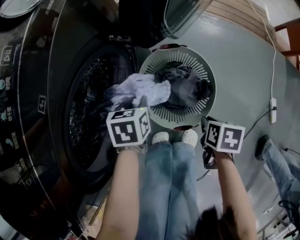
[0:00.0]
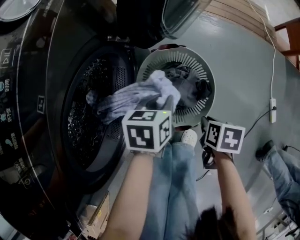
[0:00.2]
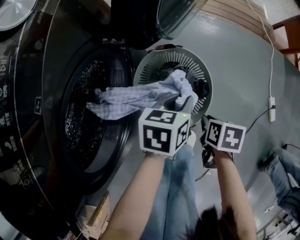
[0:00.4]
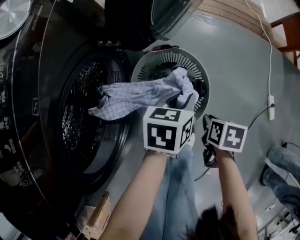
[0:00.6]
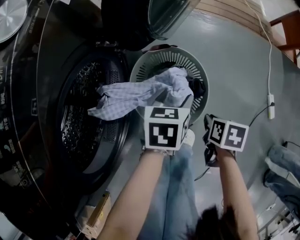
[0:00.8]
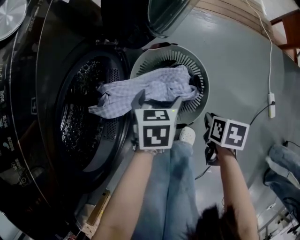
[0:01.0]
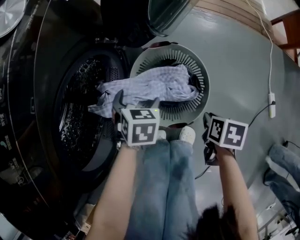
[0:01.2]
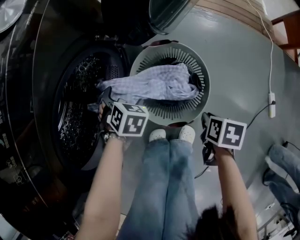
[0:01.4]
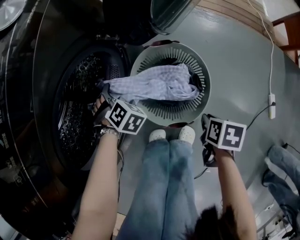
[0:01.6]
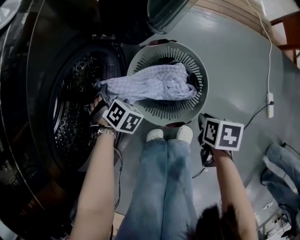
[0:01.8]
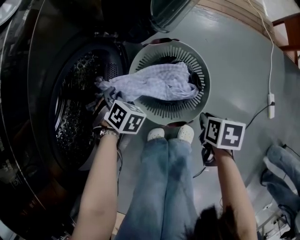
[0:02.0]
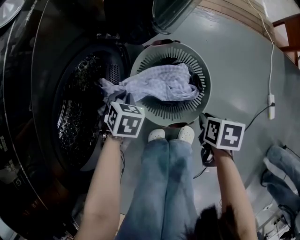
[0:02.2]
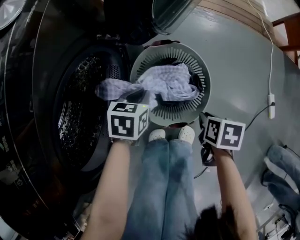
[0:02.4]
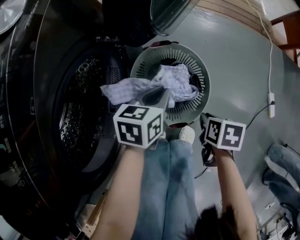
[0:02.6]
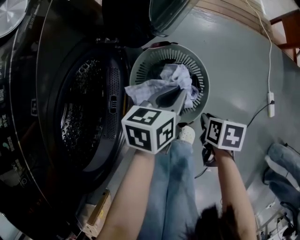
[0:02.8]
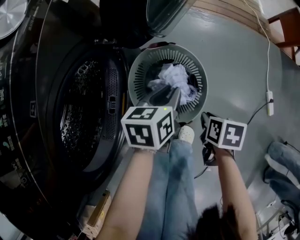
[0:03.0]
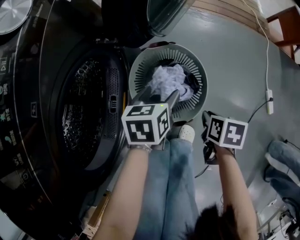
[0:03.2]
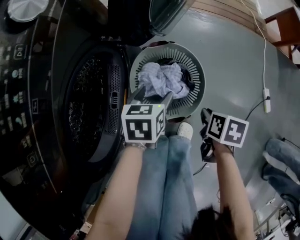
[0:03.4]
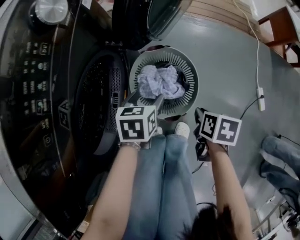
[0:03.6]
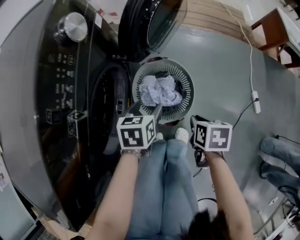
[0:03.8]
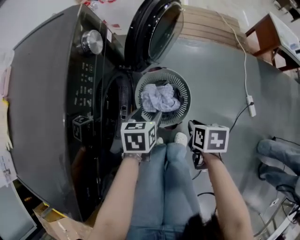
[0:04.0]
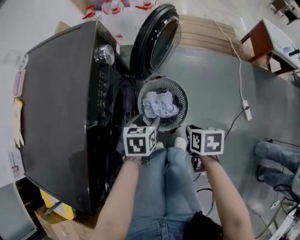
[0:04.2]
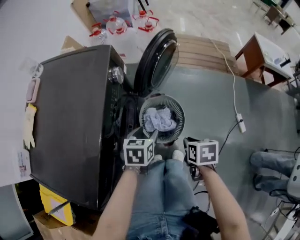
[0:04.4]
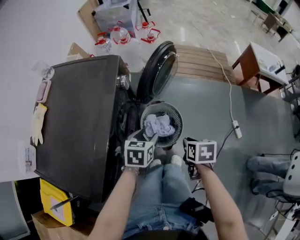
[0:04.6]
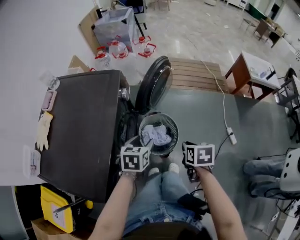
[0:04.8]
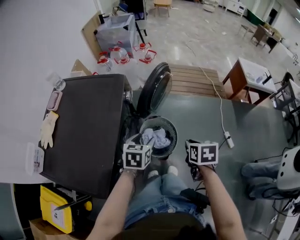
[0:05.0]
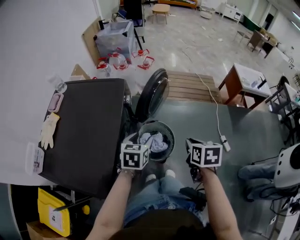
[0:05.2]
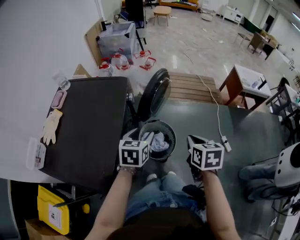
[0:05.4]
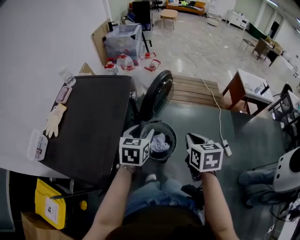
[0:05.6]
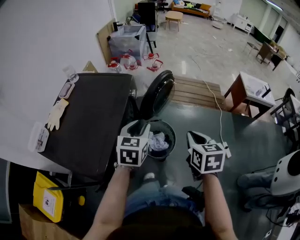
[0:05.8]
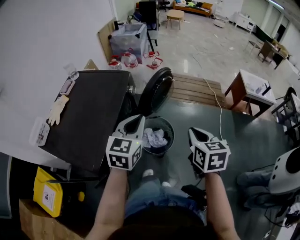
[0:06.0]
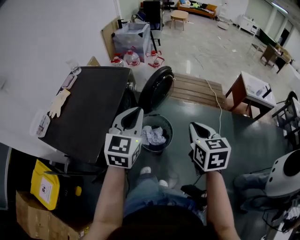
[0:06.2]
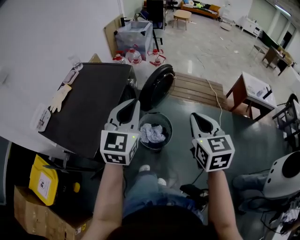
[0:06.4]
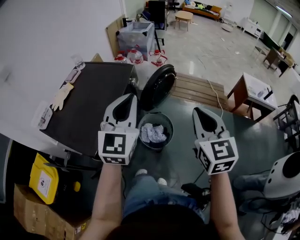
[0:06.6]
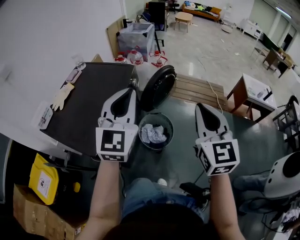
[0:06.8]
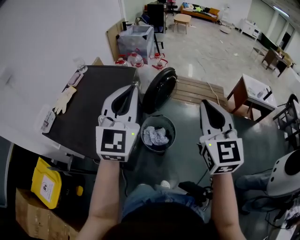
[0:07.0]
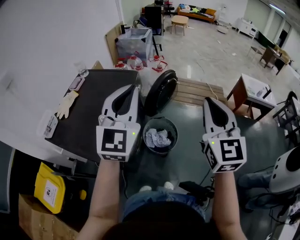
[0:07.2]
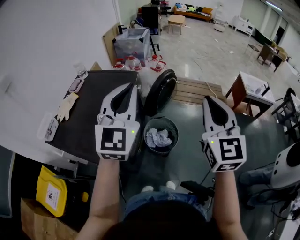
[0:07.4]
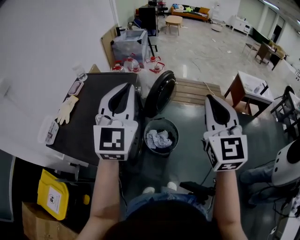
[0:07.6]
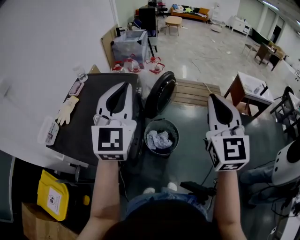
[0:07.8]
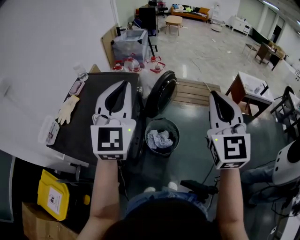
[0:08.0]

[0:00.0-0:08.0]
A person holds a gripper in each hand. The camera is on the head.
0:00.0 to 0:01.6: The left gripper rolls clockwise, seen from behind, by approximately 50 degrees, and opens up.
0:01.6 to 0:03.2: The left gripper shifts by approximately 20 cm, turns by some 60 degrees, and closes and opens again.
0:03.2 to 0:04.8: Both grippers move upward, approximately 35 cm.
0:04.8 to 0:06.4: Both grippers travel together upward, approximately 30 cm. The left gripper points its fingers some 40 degrees further upward, and closes its fingers; the right gripper angles its fingers upward, by roughly 40 degrees.
0:06.4 to 0:08.0: The left gripper shifts some 15 cm upward and to the left. The right gripper heads upward, covering about 15 cm, and rotates some 30 degrees.

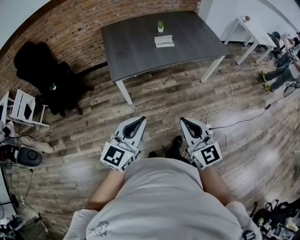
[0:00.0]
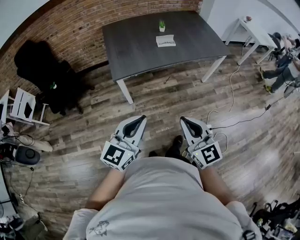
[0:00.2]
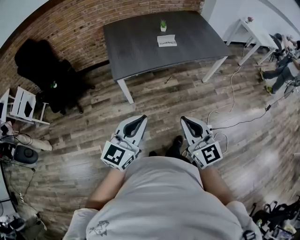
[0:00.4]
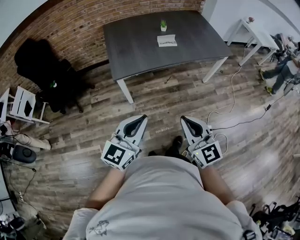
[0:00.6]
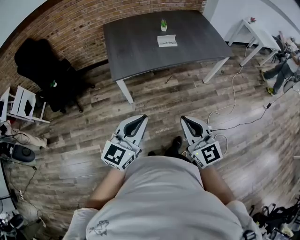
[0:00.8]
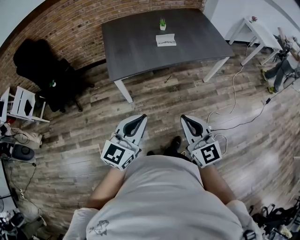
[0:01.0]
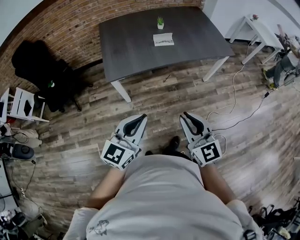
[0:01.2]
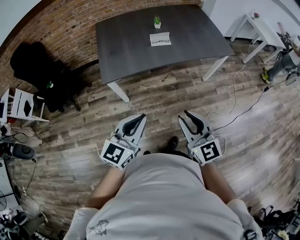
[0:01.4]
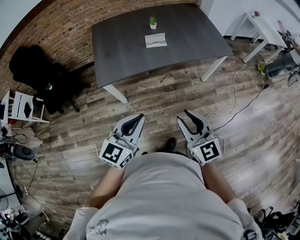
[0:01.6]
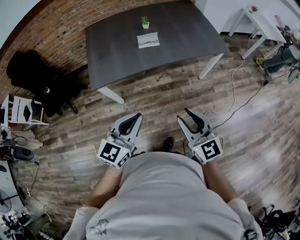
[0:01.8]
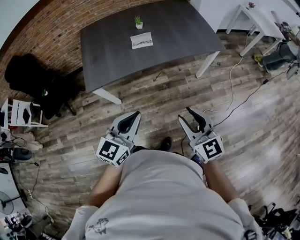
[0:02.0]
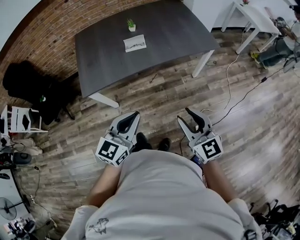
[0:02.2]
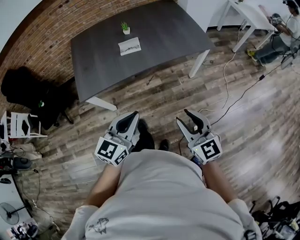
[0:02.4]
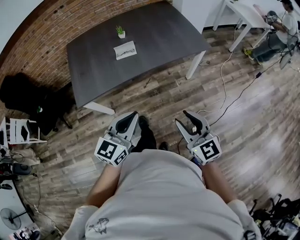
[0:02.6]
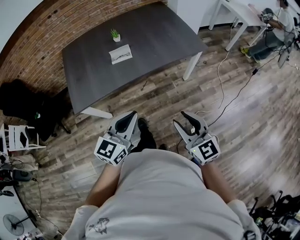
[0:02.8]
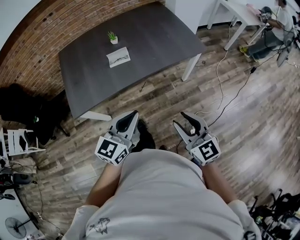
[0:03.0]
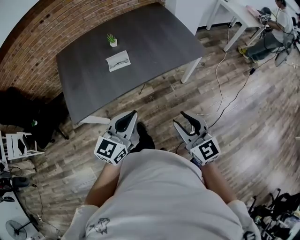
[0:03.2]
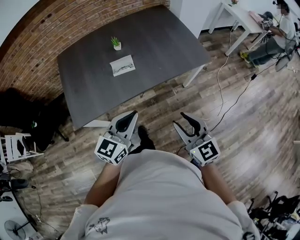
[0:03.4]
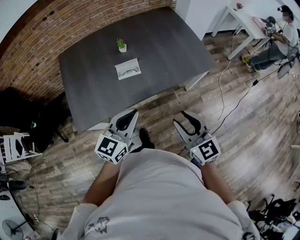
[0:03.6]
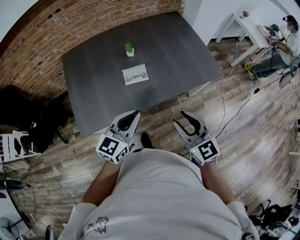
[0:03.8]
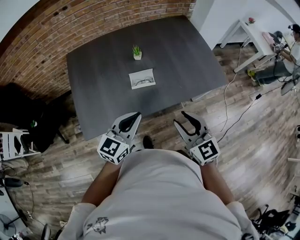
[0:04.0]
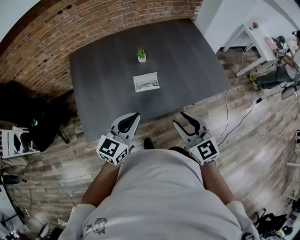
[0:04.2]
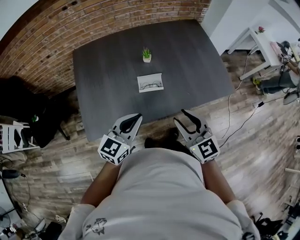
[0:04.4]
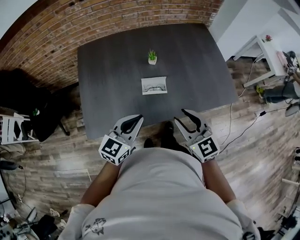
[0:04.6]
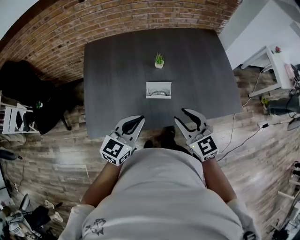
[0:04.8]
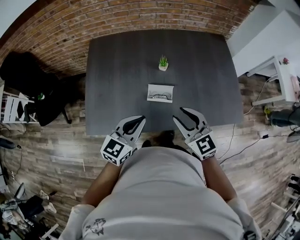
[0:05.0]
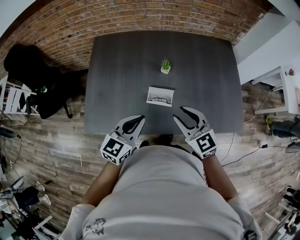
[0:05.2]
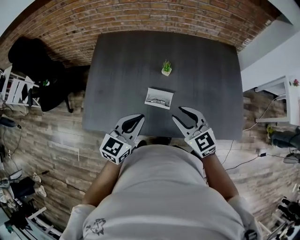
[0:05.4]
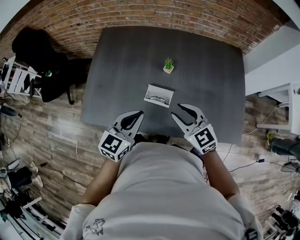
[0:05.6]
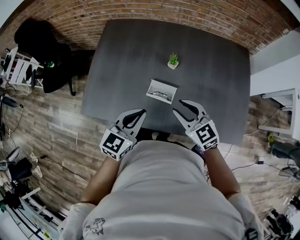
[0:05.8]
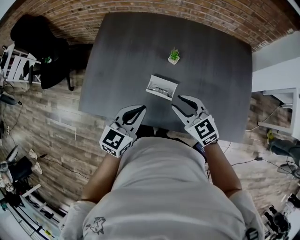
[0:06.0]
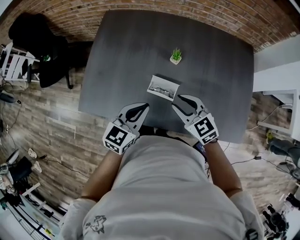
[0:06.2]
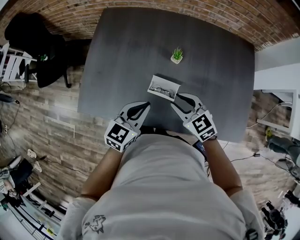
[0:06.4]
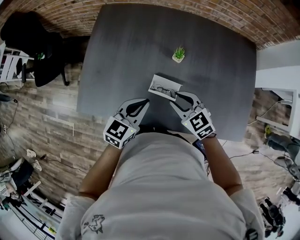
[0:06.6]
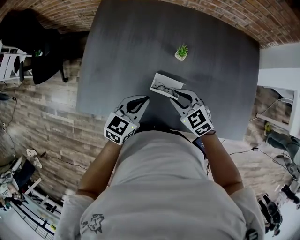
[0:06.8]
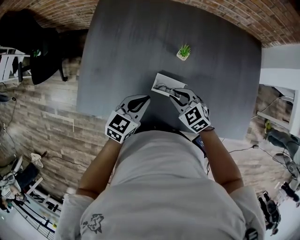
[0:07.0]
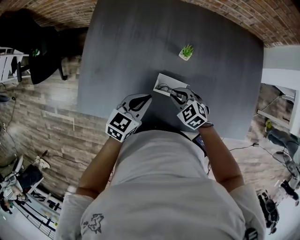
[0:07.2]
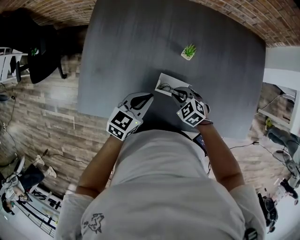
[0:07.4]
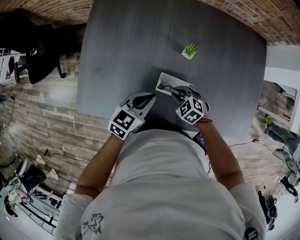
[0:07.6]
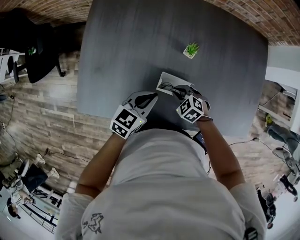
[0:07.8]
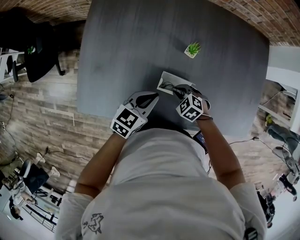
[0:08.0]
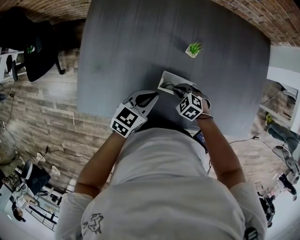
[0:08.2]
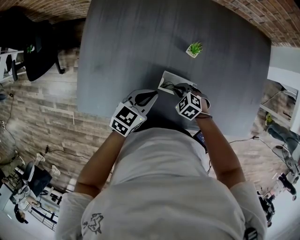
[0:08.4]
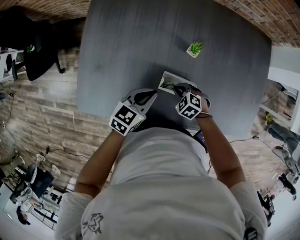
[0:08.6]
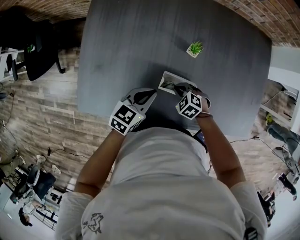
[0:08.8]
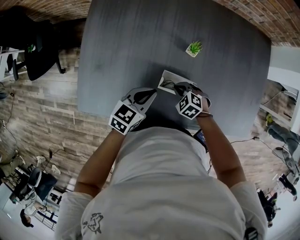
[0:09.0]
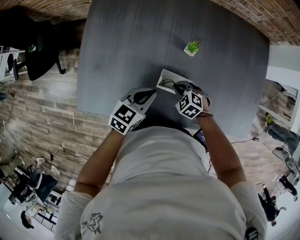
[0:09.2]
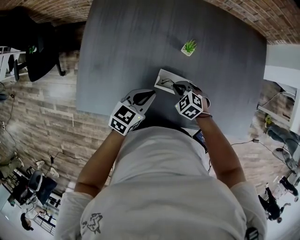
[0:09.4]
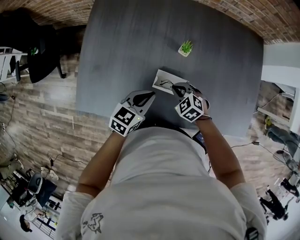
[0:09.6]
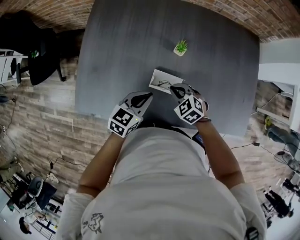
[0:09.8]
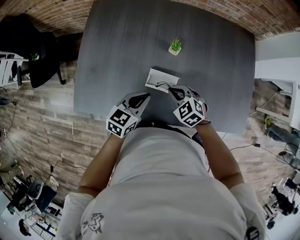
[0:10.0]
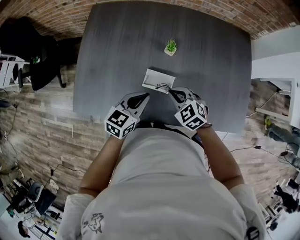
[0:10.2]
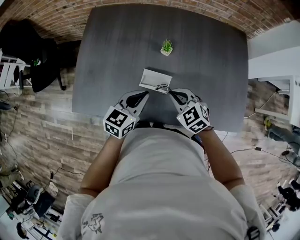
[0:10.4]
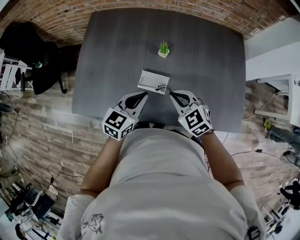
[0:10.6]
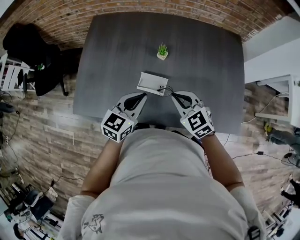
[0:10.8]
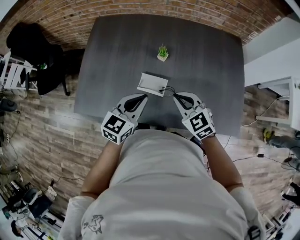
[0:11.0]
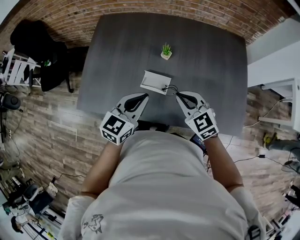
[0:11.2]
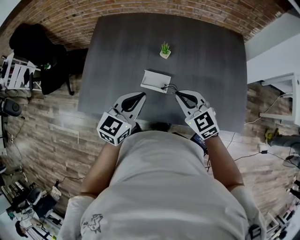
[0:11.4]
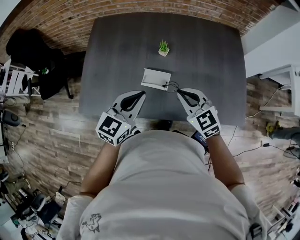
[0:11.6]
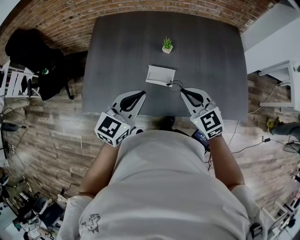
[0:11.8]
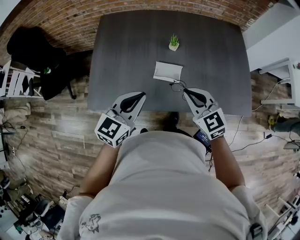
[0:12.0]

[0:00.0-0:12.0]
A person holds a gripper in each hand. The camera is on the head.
0:00.0 to 0:01.6: Both grippers travel together forward and to the right, about 20 cm. The right gripper opens.
0:01.6 to 0:03.0: The left gripper is displaced forward and to the right by roughly 20 cm, while the right gripper shifts roughly 20 cm to the right and forward.
0:03.0 to 0:04.4: Both grippers travel together forward and to the left, approximately 30 cm.
0:04.4 to 0:06.0: The right gripper shifts by some 20 cm, and changes its angle by roughly 40 degrees. Meanwhile the left gripper shifts by some 10 cm, and changes its angle by some 30 degrees.
0:06.0 to 0:07.6: The right gripper travels downward by some 25 cm, and points its fingers approximately 30 degrees further downward; the left gripper heads downward and forward, covering about 15 cm.
0:07.6 to 0:09.0: The grippers stay close to where they were, moving slightly.
0:09.0 to 0:10.4: The right gripper heads upward, covering approximately 20 cm, and swivels roughly 30 degrees; the left gripper is displaced upward, to the right and backward by about 10 cm.
0:10.4 to 0:12.0: The left gripper is displaced upward, backward and to the left by approximately 15 cm. The right gripper shifts approximately 15 cm upward and backward, and turns by some 20 degrees.

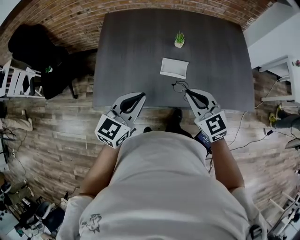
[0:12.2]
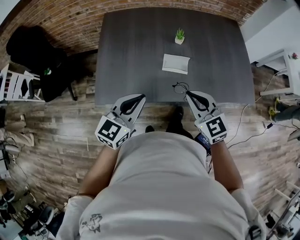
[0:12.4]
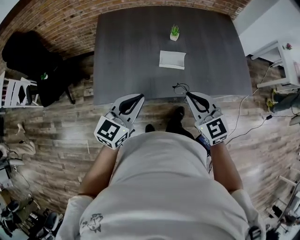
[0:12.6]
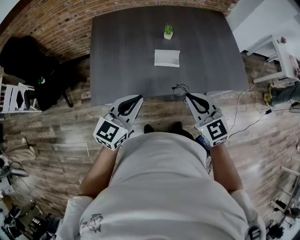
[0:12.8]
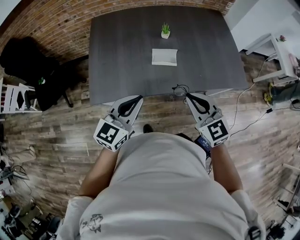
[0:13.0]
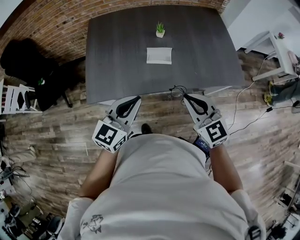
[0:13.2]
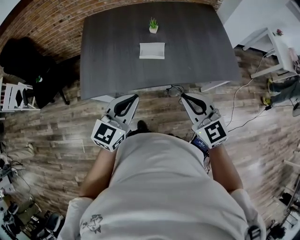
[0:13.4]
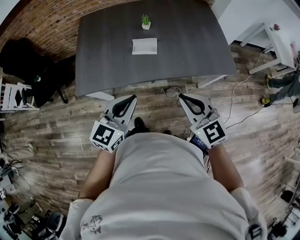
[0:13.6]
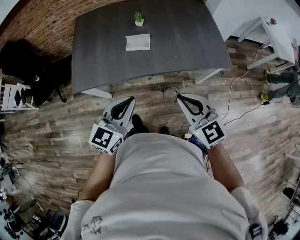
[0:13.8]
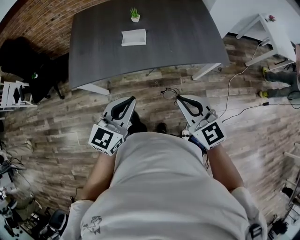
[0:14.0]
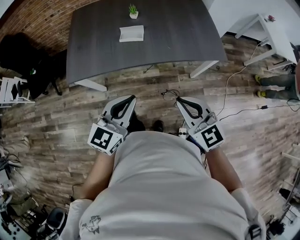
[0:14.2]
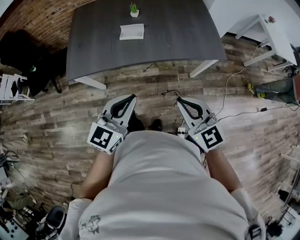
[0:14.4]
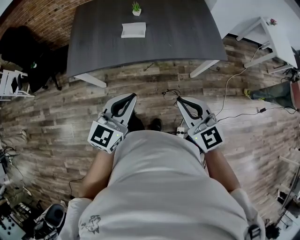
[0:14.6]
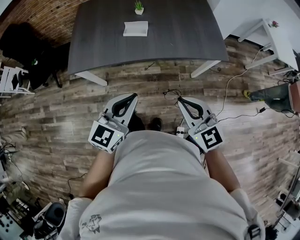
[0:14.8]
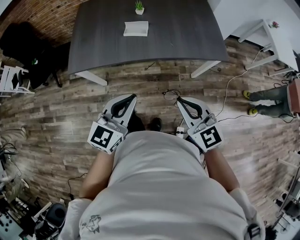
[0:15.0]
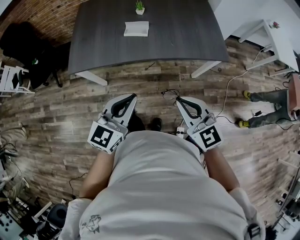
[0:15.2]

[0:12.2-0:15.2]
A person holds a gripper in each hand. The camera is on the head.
0:12.2 to 0:13.8: The two grippers go some 25 cm backward and to the right.
0:13.8 to 0:15.2: Both grippers travel together backward, some 10 cm.
